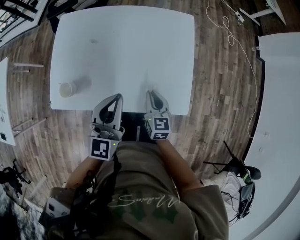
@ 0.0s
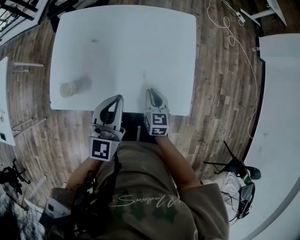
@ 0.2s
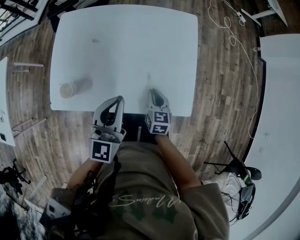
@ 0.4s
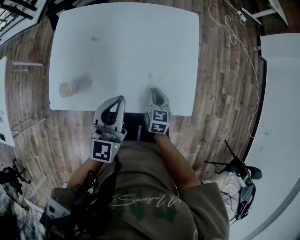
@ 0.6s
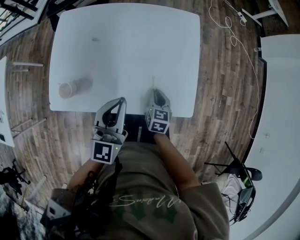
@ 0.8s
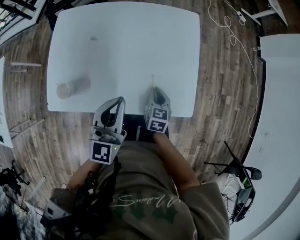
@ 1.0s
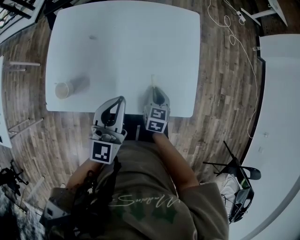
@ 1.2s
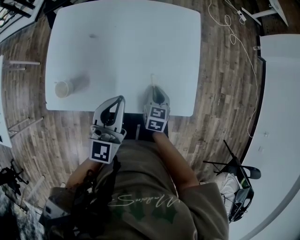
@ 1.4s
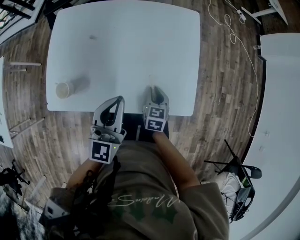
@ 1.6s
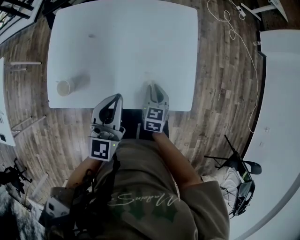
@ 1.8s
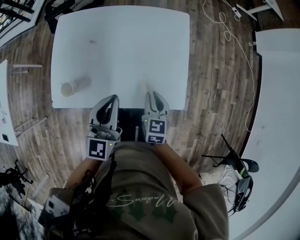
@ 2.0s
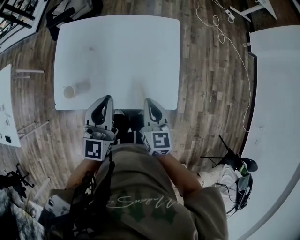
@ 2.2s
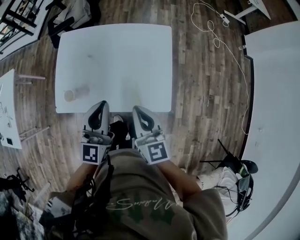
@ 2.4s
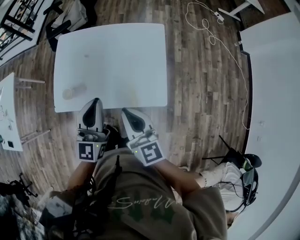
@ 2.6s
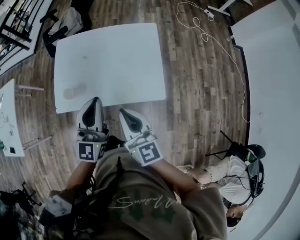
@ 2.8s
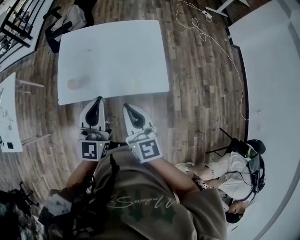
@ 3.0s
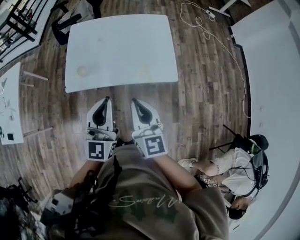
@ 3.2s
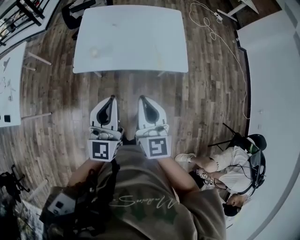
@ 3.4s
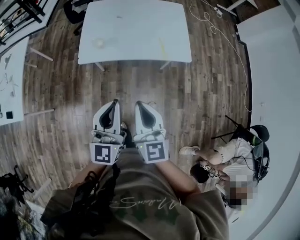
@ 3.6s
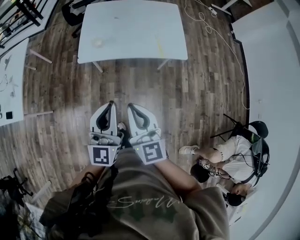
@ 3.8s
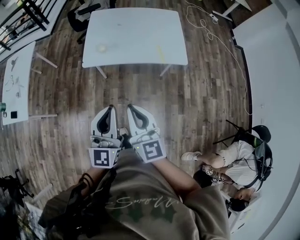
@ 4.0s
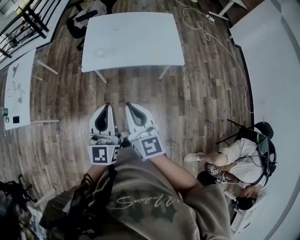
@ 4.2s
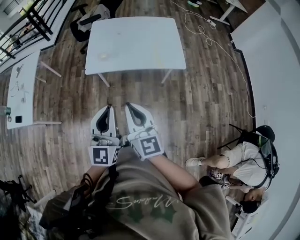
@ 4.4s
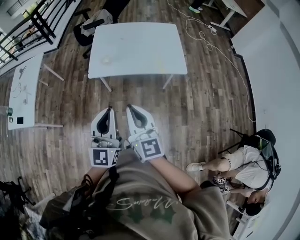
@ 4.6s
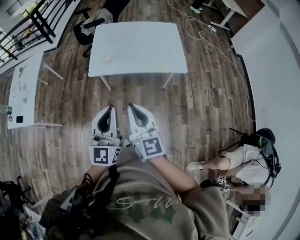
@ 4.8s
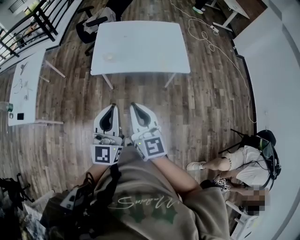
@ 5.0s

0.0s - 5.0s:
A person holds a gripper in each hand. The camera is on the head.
0.0s - 1.6s: The right gripper is displaced downward by about 10 cm.
1.6s - 3.4s: The right gripper travels upward and backward by about 50 cm, and angles its fingers upward, by approximately 40 degrees. The left gripper travels backward and upward by approximately 35 cm.
3.4s - 5.0s: Both grippers move backward and to the left, some 15 cm.

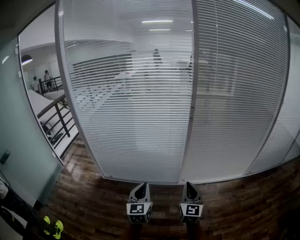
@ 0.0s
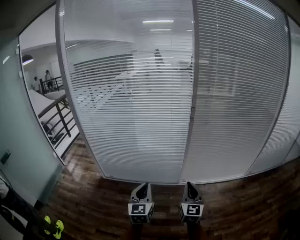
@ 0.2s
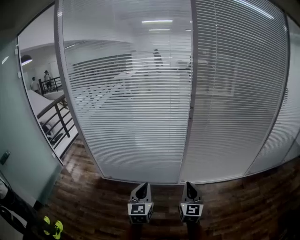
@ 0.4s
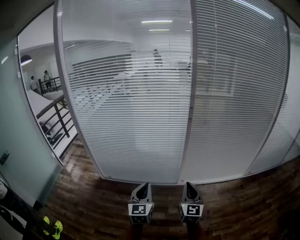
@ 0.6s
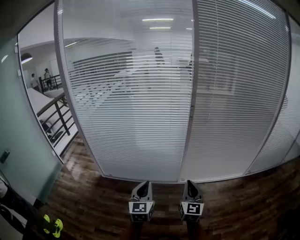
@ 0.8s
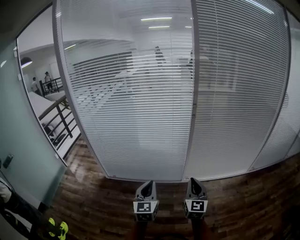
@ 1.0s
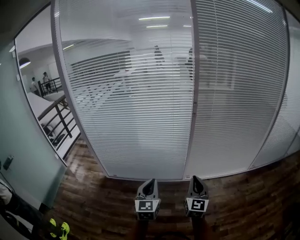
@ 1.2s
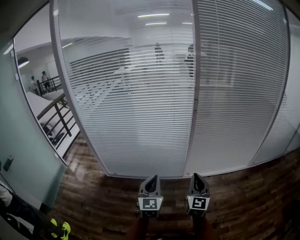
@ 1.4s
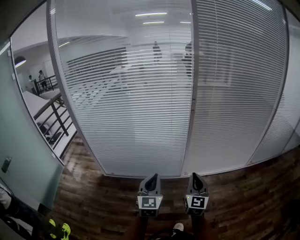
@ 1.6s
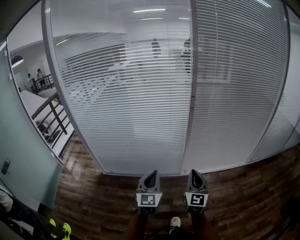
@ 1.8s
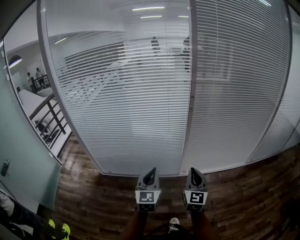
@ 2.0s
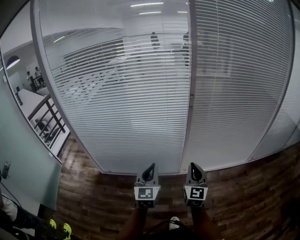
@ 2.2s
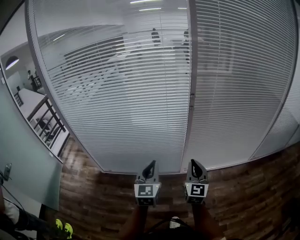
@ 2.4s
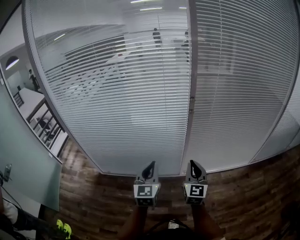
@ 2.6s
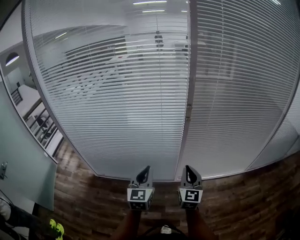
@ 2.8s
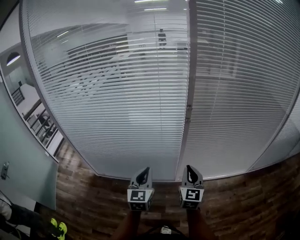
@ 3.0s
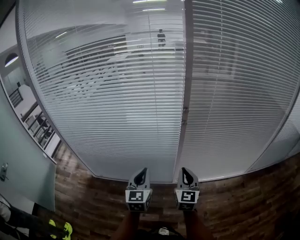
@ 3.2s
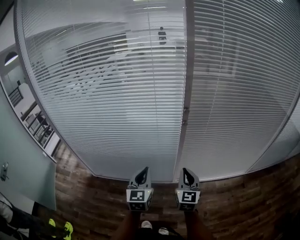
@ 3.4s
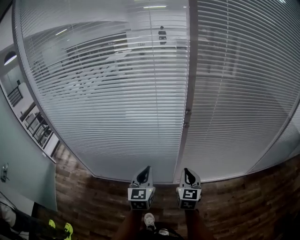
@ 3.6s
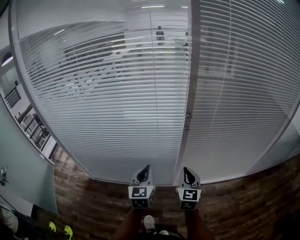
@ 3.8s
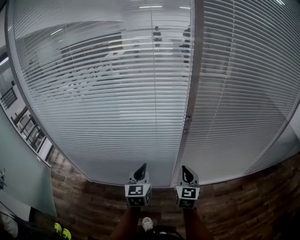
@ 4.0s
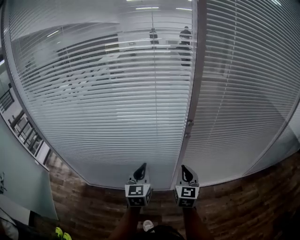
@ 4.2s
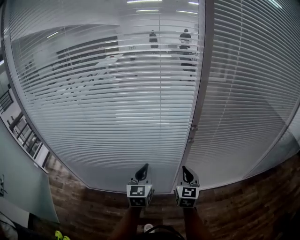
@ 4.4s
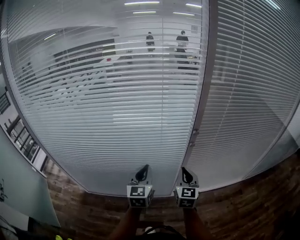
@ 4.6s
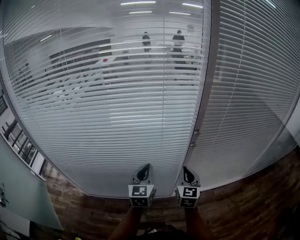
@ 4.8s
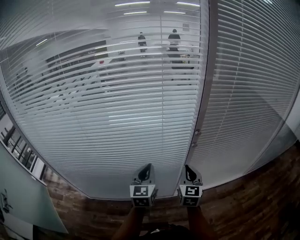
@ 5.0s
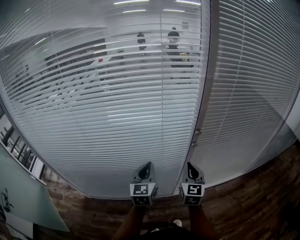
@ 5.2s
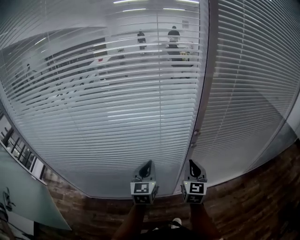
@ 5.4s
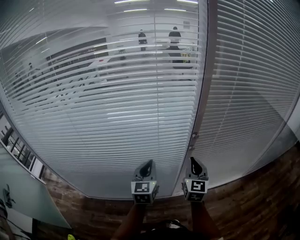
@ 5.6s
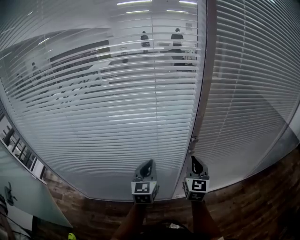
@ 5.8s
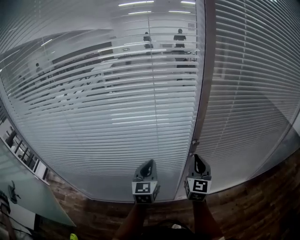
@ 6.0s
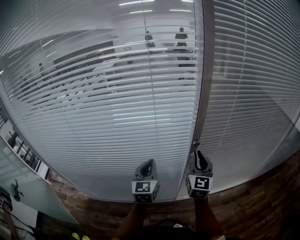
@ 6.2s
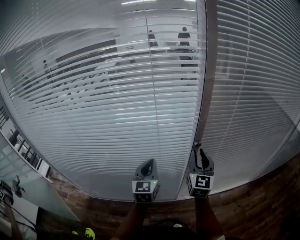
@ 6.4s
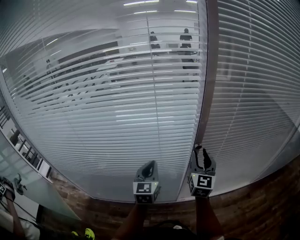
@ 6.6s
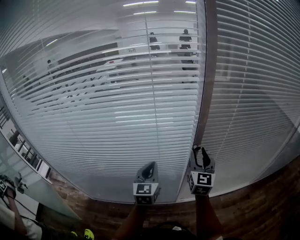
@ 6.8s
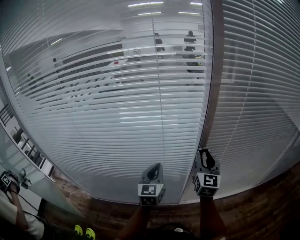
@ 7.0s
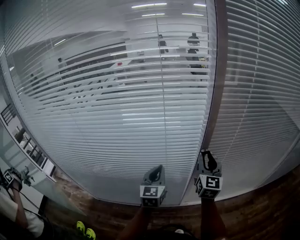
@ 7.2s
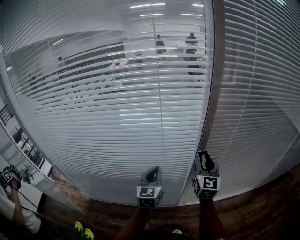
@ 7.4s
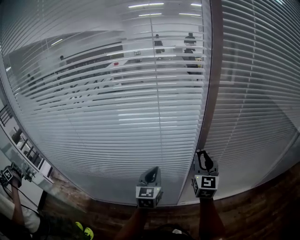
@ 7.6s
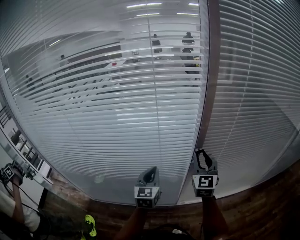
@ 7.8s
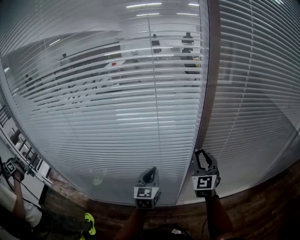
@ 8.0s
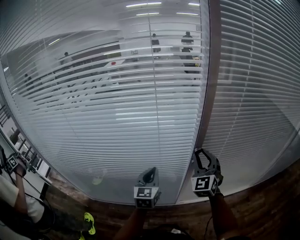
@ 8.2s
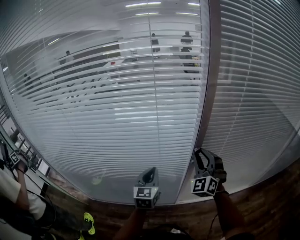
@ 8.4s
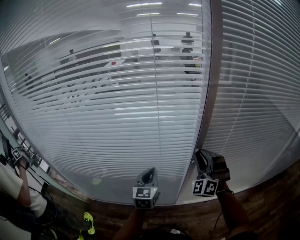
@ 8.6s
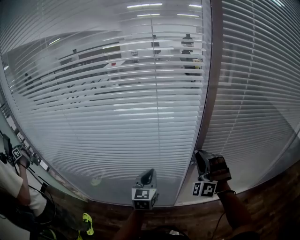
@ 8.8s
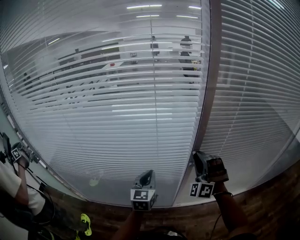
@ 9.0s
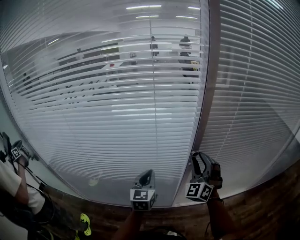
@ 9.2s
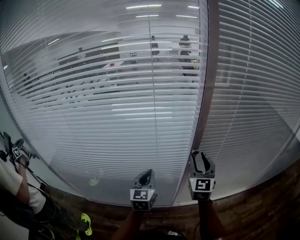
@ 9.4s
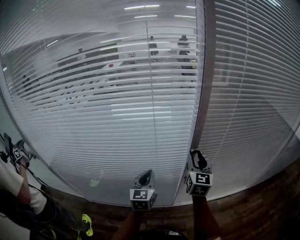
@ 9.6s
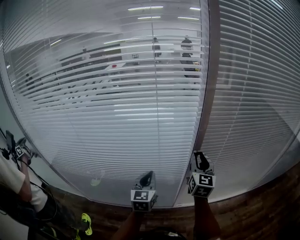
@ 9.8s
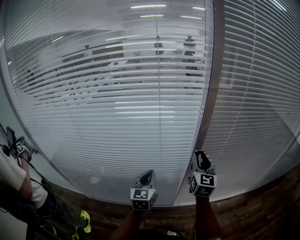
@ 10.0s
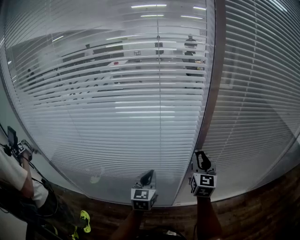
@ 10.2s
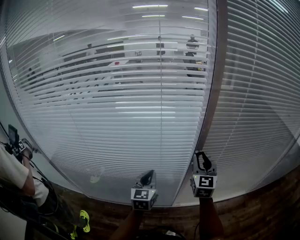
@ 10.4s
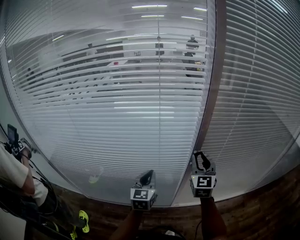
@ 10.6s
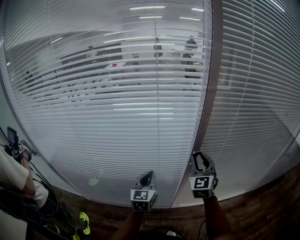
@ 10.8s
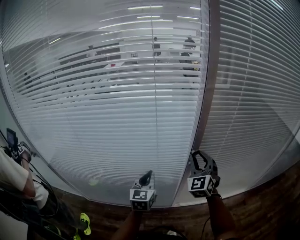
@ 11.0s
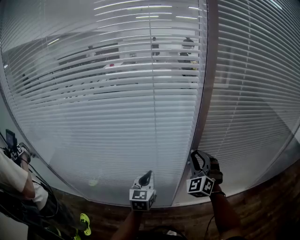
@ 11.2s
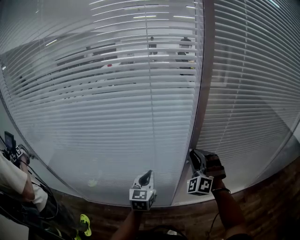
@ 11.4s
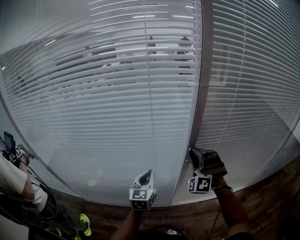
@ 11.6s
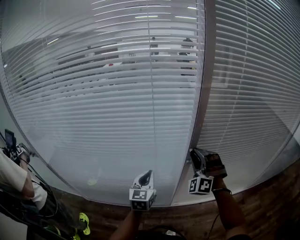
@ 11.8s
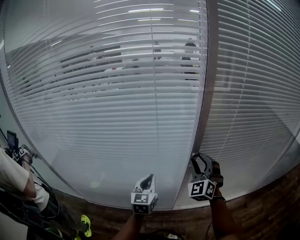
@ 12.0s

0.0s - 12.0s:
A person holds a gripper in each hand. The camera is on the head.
0.0s - 1.6s: The grippers make only small movements.
1.6s - 3.0s: The grippers both shift forward by about 15 cm.
3.0s - 4.4s: The left gripper travels forward by roughly 15 cm. The right gripper is displaced forward and to the left by approximately 15 cm.
4.4s - 6.0s: The right gripper heads forward and upward, covering approximately 15 cm. The left gripper moves forward, some 10 cm.
6.0s - 7.6s: The right gripper opens its fingers.
7.6s - 9.0s: The right gripper rolls counterclockwise, seen from behind, by about 80 degrees.
9.0s - 10.4s: The right gripper rotates around the line of its fingers by some 70 degrees, clockwise from behind.
10.4s - 12.0s: The right gripper rolls counterclockwise, seen from behind, by approximately 40 degrees.

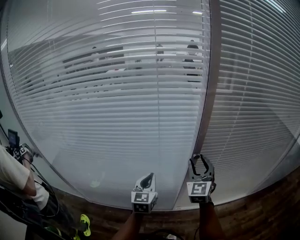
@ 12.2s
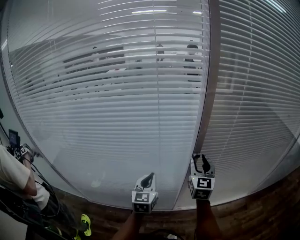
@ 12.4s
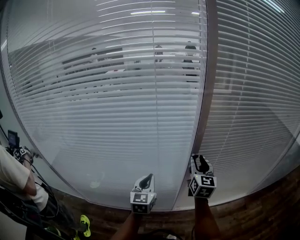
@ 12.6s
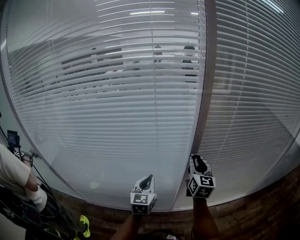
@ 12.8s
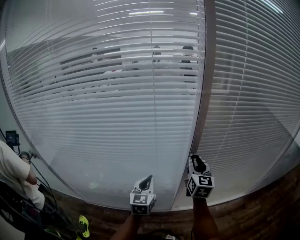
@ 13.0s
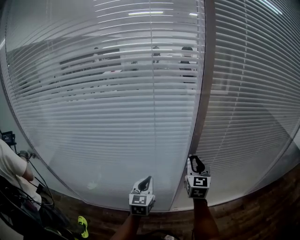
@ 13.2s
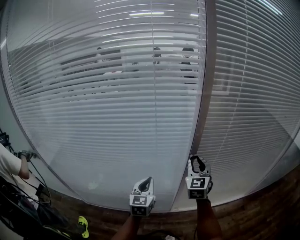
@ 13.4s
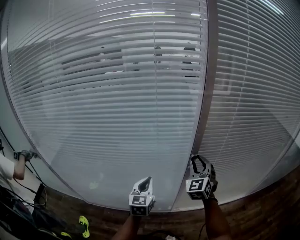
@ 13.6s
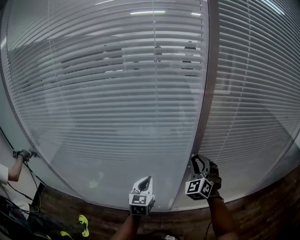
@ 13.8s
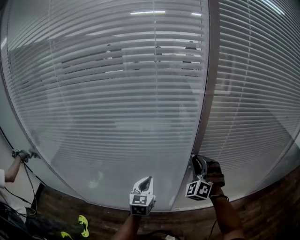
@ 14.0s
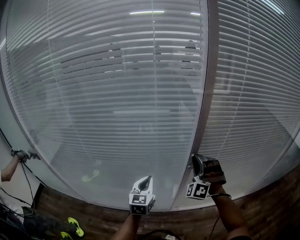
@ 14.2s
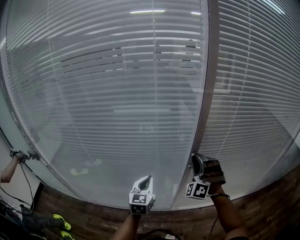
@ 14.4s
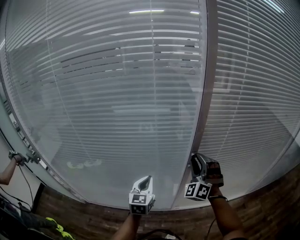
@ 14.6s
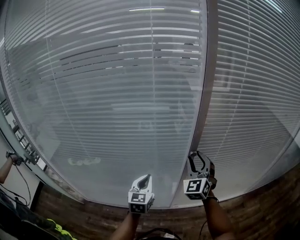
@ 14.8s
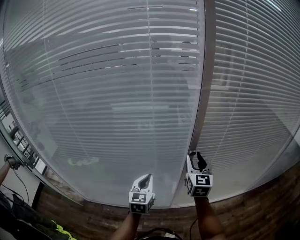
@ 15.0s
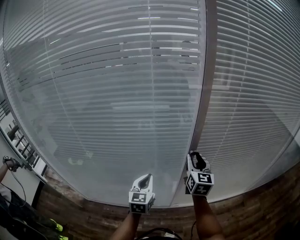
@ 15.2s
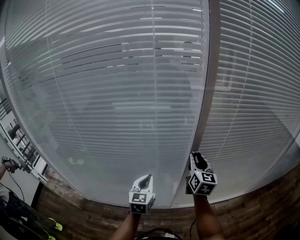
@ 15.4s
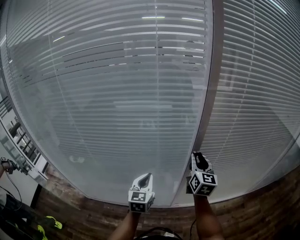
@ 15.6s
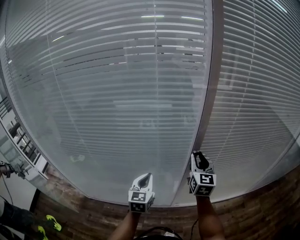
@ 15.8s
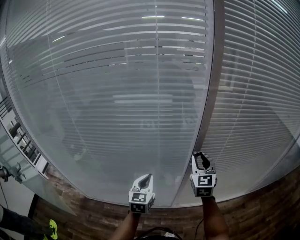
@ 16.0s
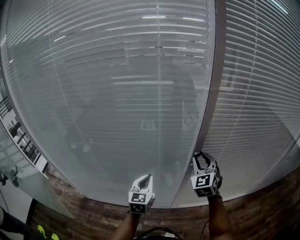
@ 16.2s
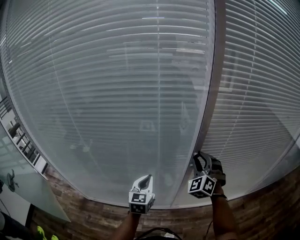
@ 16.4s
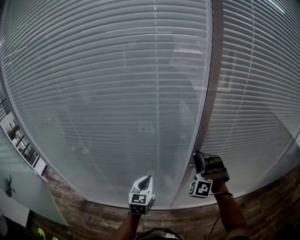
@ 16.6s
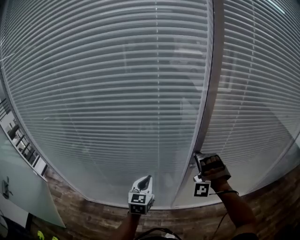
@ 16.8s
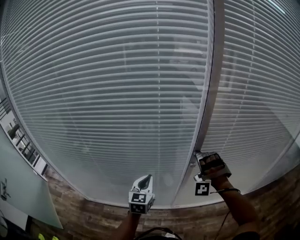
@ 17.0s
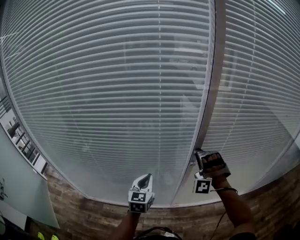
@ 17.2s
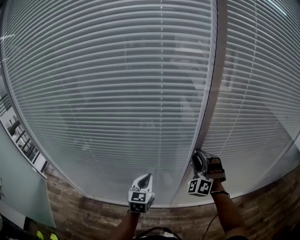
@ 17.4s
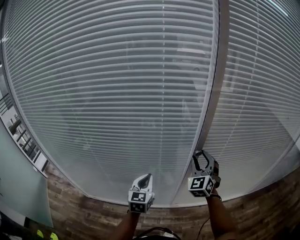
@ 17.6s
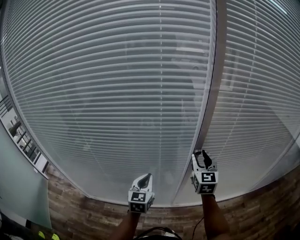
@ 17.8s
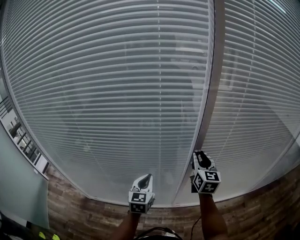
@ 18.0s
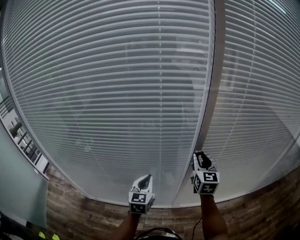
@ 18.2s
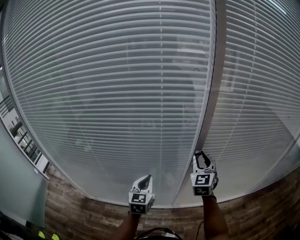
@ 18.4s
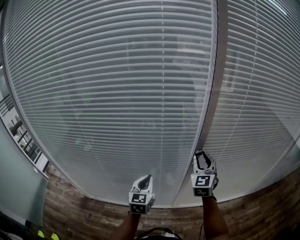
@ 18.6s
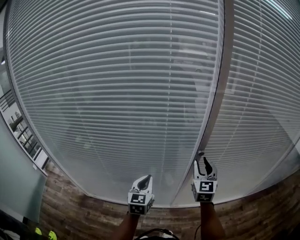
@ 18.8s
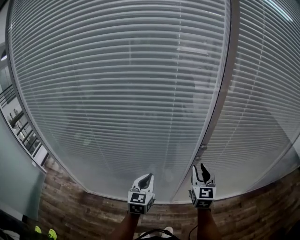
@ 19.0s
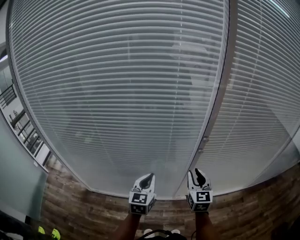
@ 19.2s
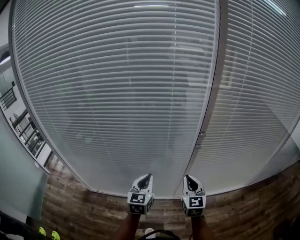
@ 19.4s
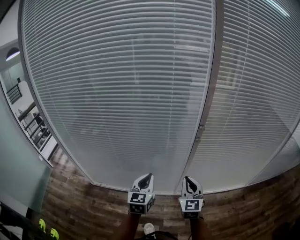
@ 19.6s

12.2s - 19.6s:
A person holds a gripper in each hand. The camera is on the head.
13.6s - 15.2s: The right gripper twists some 40 degrees clockwise, seen from behind.
15.2s - 16.6s: The right gripper rotates around the line of its fingers by some 90 degrees, counterclockwise from behind.
16.6s - 18.2s: The right gripper rolls clockwise, seen from behind, by approximately 90 degrees.
18.2s - 19.6s: The right gripper heads backward, covering about 20 cm, and closes; the left gripper heads backward, covering approximately 15 cm.
